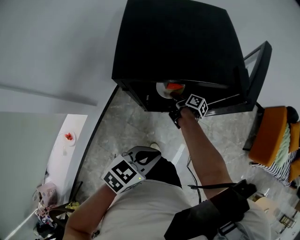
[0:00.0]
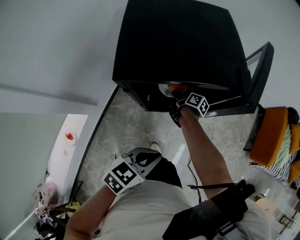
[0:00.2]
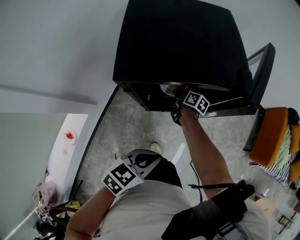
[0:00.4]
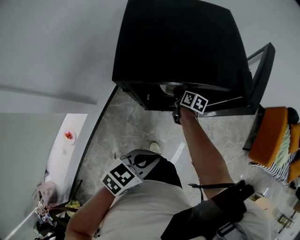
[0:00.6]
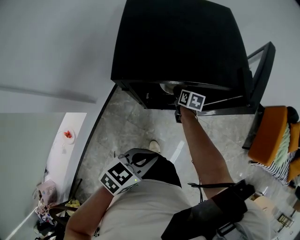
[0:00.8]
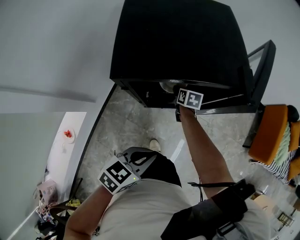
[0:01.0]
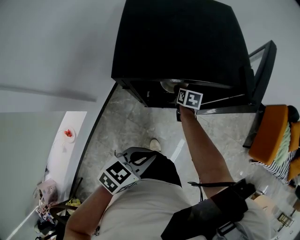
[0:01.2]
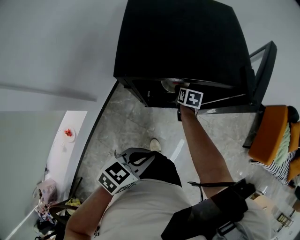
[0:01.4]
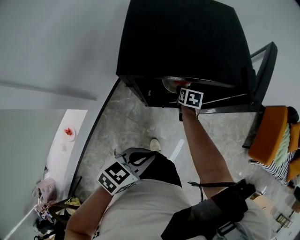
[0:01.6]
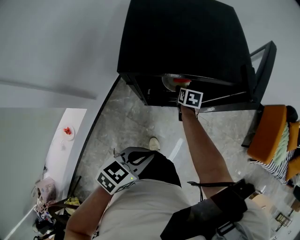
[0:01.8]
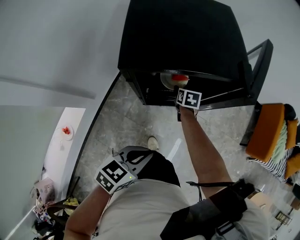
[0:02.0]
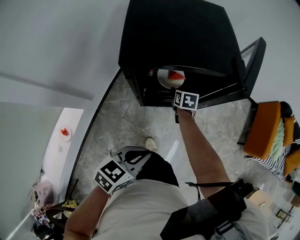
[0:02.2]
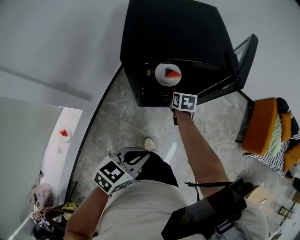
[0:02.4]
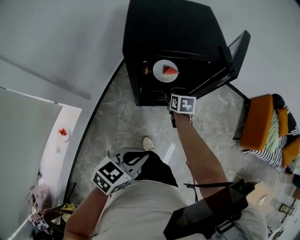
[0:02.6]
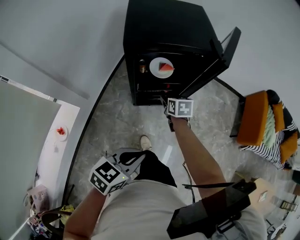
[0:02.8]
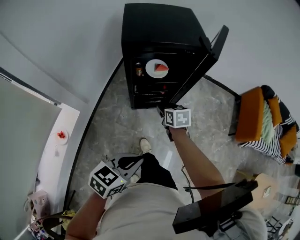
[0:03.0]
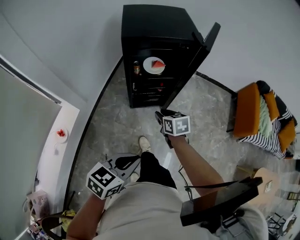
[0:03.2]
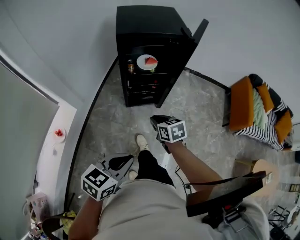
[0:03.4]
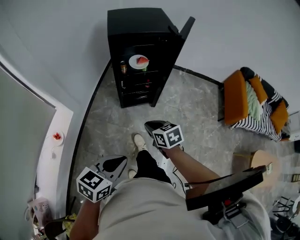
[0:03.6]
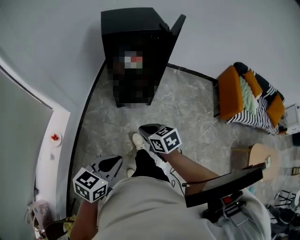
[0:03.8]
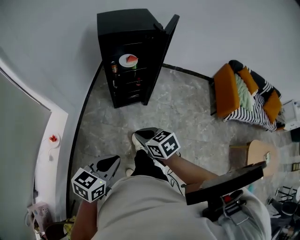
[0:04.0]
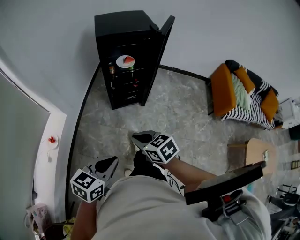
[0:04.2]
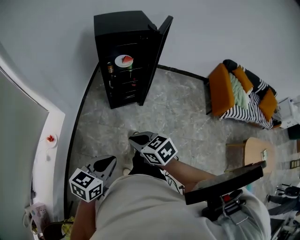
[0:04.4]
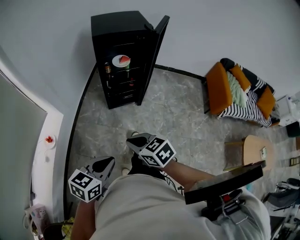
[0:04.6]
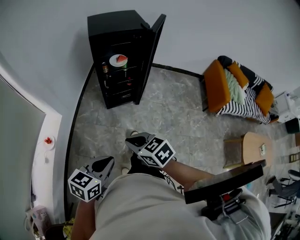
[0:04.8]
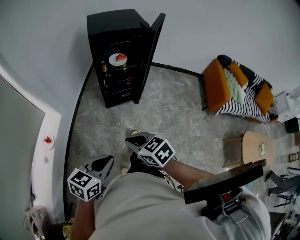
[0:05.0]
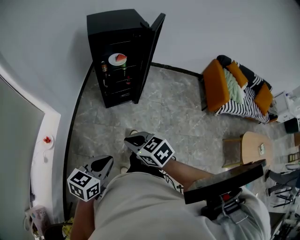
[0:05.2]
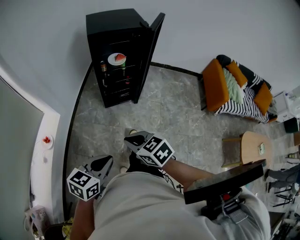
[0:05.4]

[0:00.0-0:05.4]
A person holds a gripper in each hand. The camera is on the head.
0:00.0 to 0:01.4: The right gripper rotates around the line of its fingers by some 50 degrees, counterclockwise from behind, and opens up.
0:01.4 to 0:02.8: The right gripper shifts approximately 20 cm backward and upward; the left gripper travels backward by about 15 cm.
0:02.8 to 0:04.0: The left gripper moves backward, roughly 25 cm. The right gripper travels backward by approximately 40 cm, turns by some 20 degrees, and closes up.
0:04.0 to 0:05.4: The right gripper is displaced backward by approximately 5 cm.

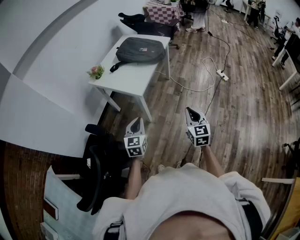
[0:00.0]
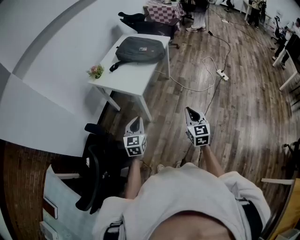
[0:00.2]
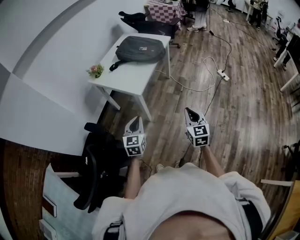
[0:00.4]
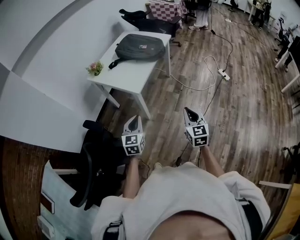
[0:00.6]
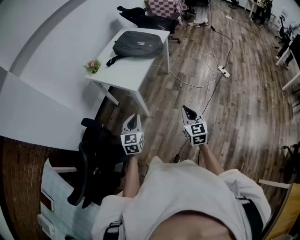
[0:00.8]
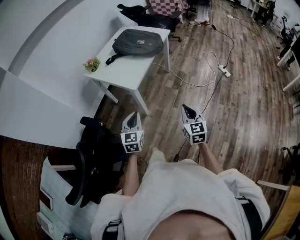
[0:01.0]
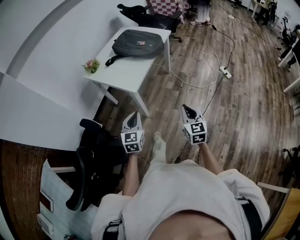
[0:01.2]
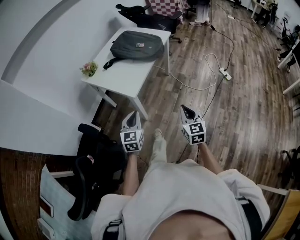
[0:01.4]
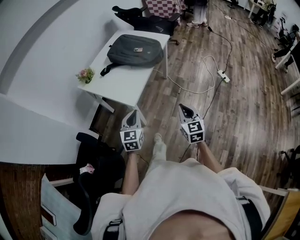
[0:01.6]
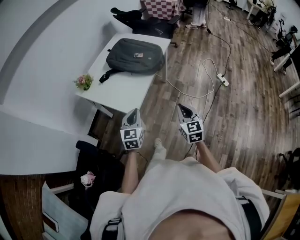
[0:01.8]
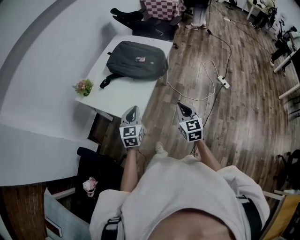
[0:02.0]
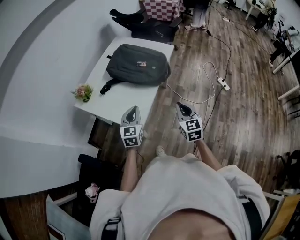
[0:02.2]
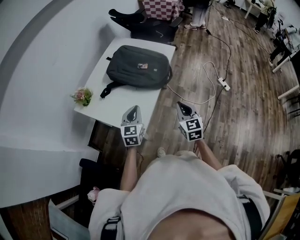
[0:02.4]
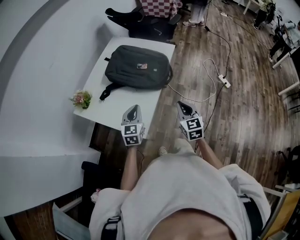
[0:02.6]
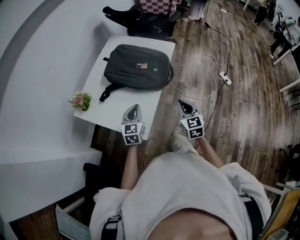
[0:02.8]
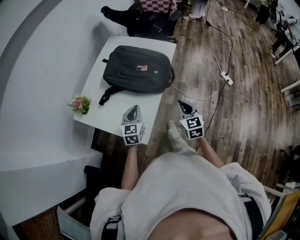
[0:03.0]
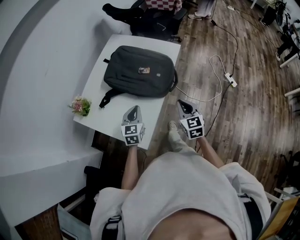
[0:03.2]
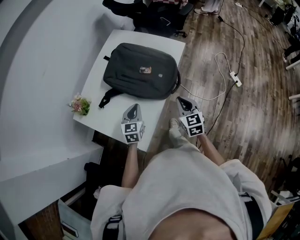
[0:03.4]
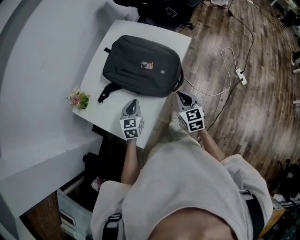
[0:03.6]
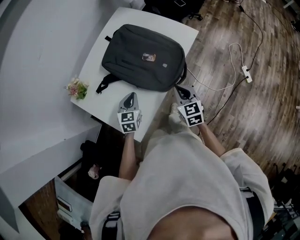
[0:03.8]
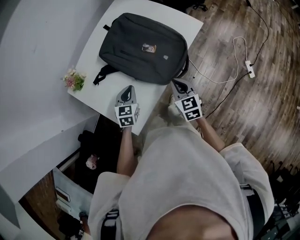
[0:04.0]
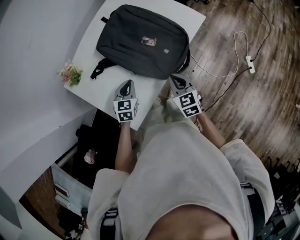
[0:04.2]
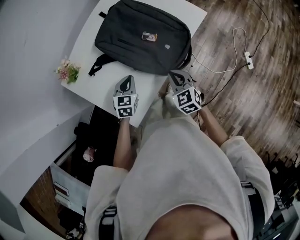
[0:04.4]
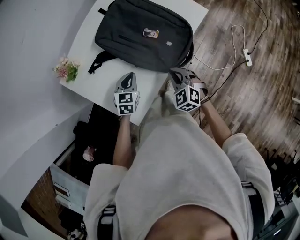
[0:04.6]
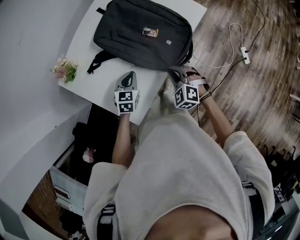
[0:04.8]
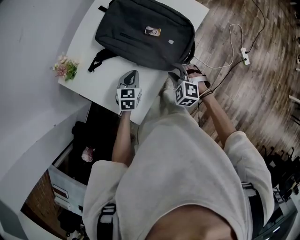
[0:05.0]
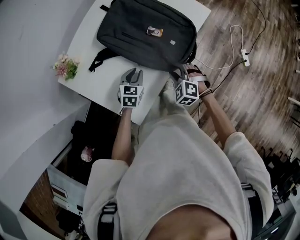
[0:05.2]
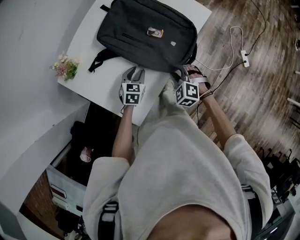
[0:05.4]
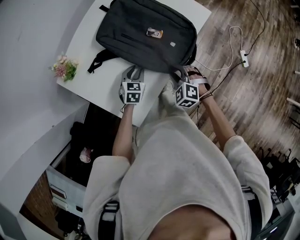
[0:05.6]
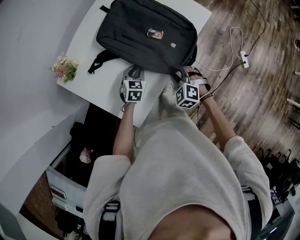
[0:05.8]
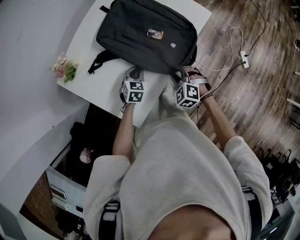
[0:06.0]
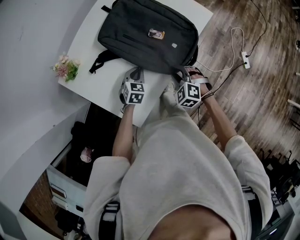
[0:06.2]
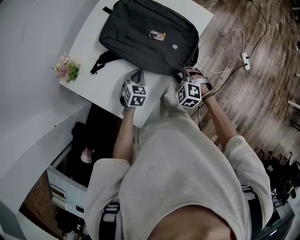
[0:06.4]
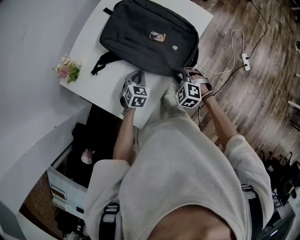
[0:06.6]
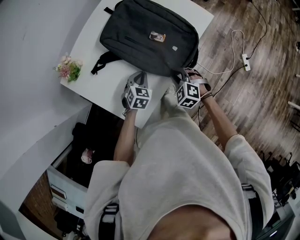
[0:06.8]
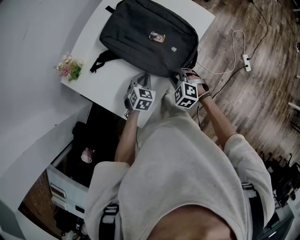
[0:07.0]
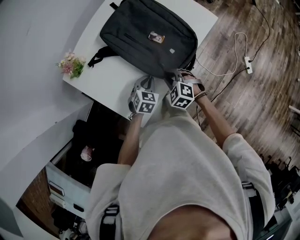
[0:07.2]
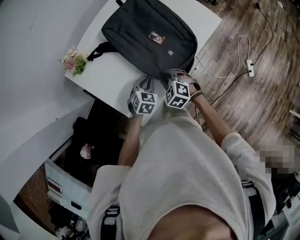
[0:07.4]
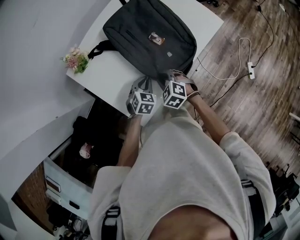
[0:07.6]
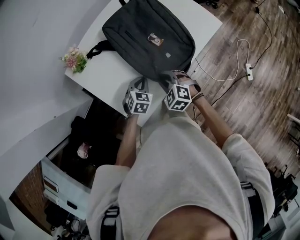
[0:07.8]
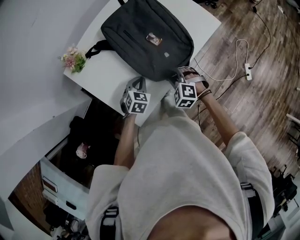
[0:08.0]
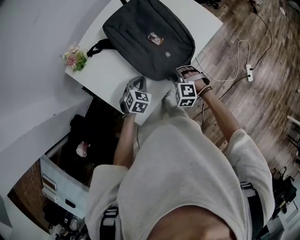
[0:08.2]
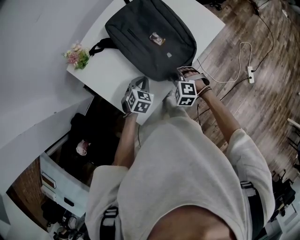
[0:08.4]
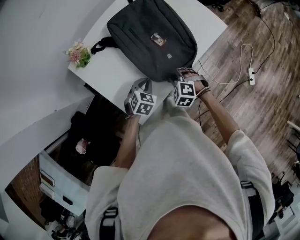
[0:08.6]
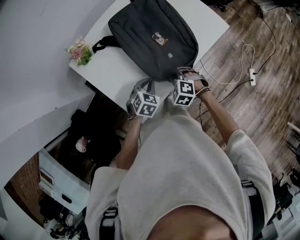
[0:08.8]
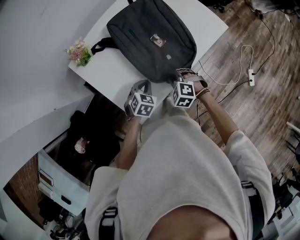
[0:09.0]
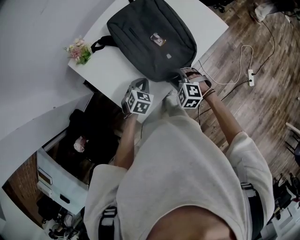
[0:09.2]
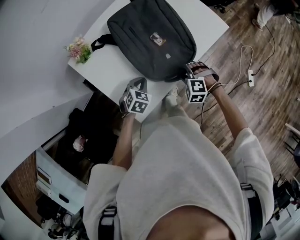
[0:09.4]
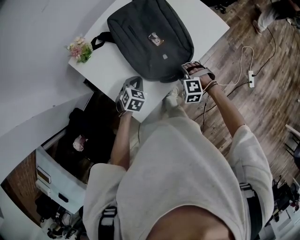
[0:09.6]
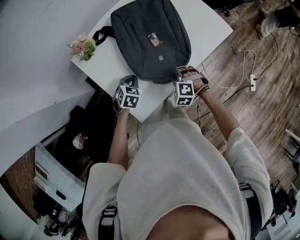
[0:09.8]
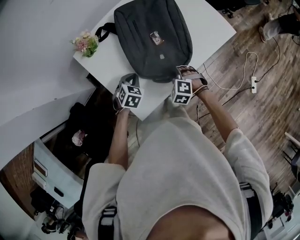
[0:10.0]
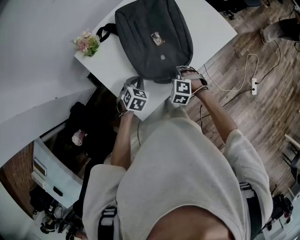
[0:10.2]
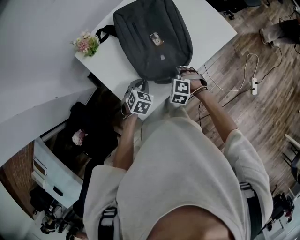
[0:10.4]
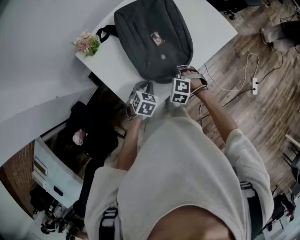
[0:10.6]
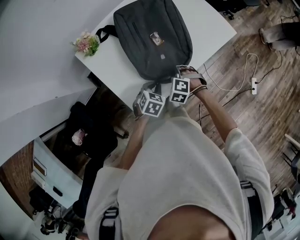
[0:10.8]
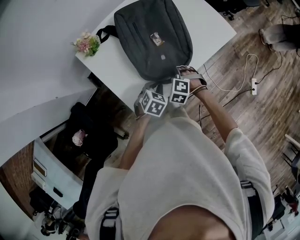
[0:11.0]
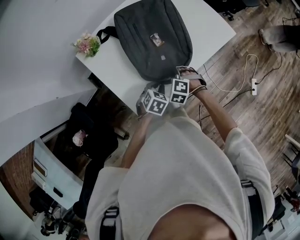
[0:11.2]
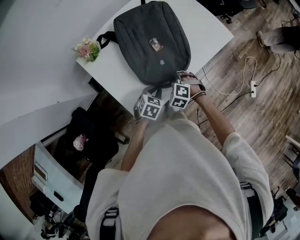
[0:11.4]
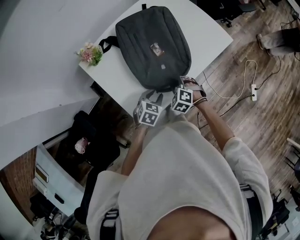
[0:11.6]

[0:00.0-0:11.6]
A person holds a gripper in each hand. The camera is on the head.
0:00.0 to 0:01.4: The grippers both shift forward by roughly 10 cm.
0:01.4 to 0:02.8: Both grippers move forward, roughly 35 cm.
0:02.8 to 0:04.4: The two grippers go some 20 cm forward and downward. The right gripper turns by about 40 degrees, while the left gripper turns by some 20 degrees.
0:04.4 to 0:05.8: The grippers both shift downward by some 5 cm. The right gripper rotates roughly 30 degrees, and opens up.
0:05.8 to 0:07.2: The left gripper goes about 5 cm backward. The right gripper is displaced to the left by roughly 5 cm.
0:08.8 to 0:10.2: The left gripper shifts some 10 cm to the left. The right gripper opens, then closes again.
0:10.2 to 0:11.6: The left gripper heads to the right, covering approximately 10 cm, and opens its fingers.

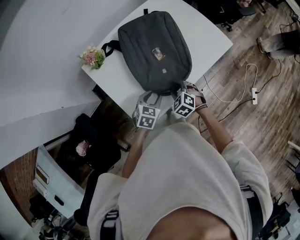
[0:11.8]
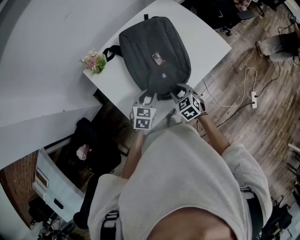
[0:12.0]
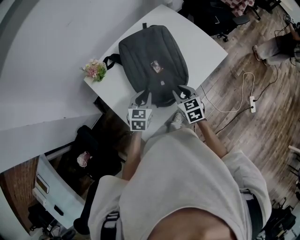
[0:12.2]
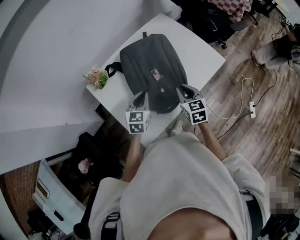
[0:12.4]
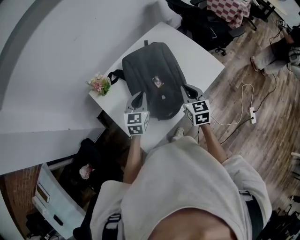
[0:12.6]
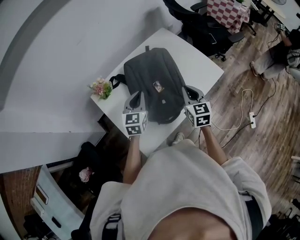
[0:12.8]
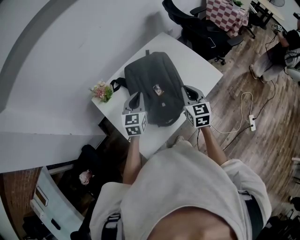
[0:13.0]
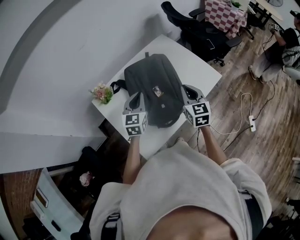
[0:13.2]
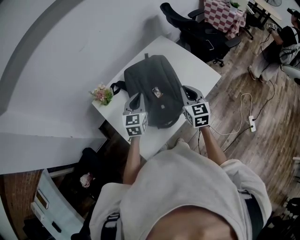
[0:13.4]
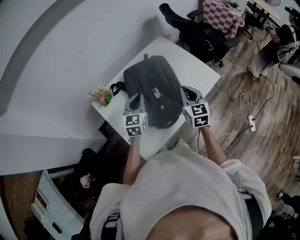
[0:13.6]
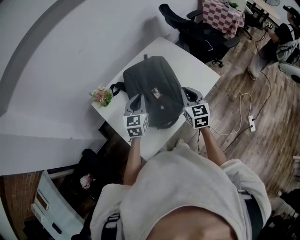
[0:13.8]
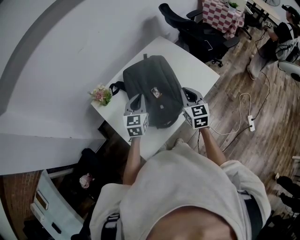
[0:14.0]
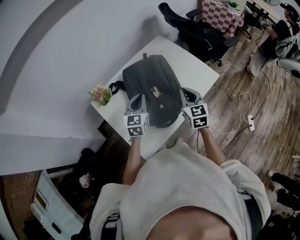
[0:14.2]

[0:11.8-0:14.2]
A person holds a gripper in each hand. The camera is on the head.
0:11.8 to 0:13.0: The two grippers go roughly 25 cm upward and forward. The left gripper tips its fingers upward by about 30 degrees, and closes. Meanwhile the right gripper angles its fingers upward, by approximately 40 degrees, and closes its fingers.
0:13.0 to 0:14.2: The grippers stay close to where they were, moving slightly.

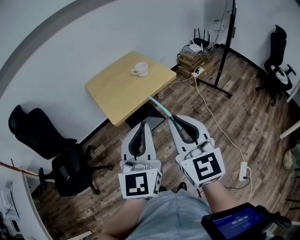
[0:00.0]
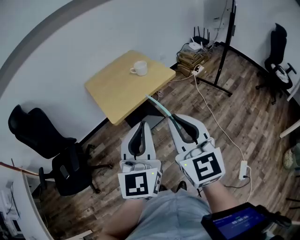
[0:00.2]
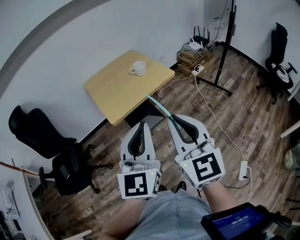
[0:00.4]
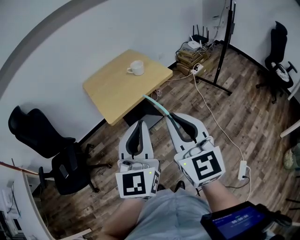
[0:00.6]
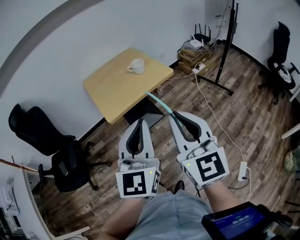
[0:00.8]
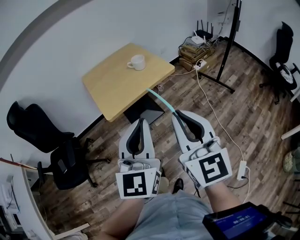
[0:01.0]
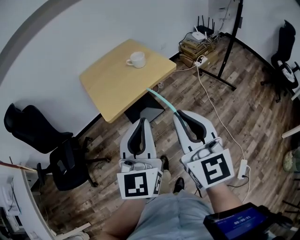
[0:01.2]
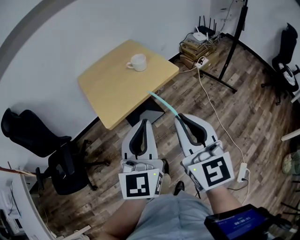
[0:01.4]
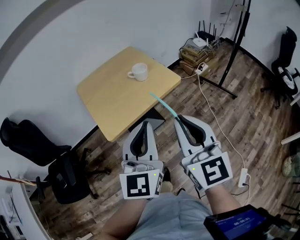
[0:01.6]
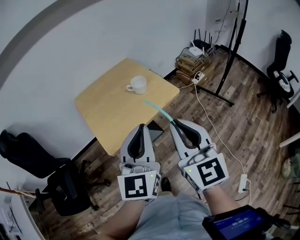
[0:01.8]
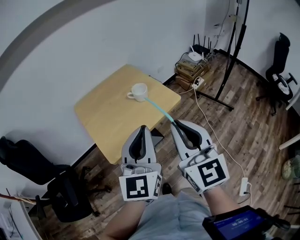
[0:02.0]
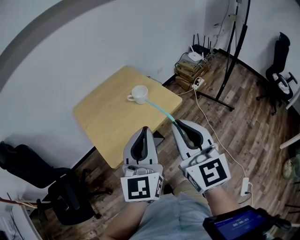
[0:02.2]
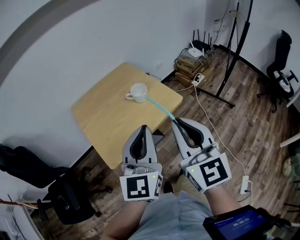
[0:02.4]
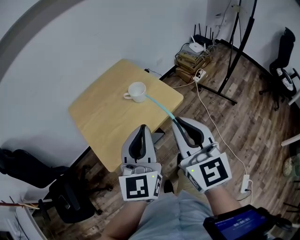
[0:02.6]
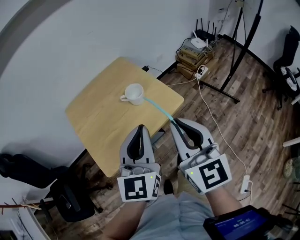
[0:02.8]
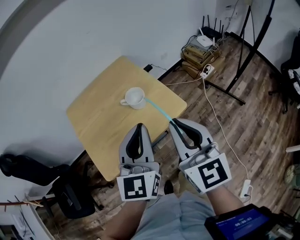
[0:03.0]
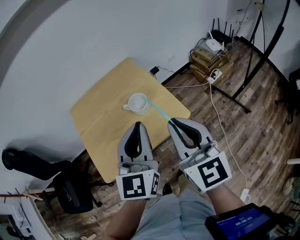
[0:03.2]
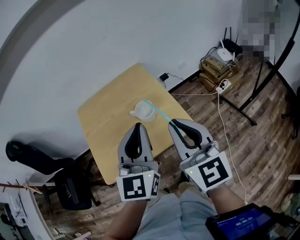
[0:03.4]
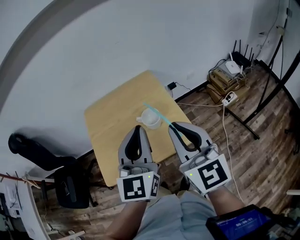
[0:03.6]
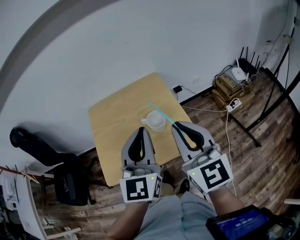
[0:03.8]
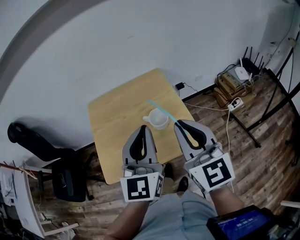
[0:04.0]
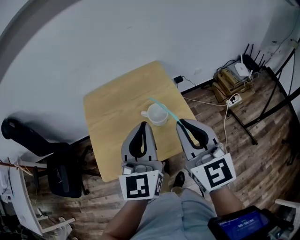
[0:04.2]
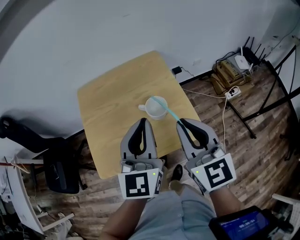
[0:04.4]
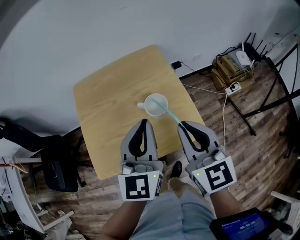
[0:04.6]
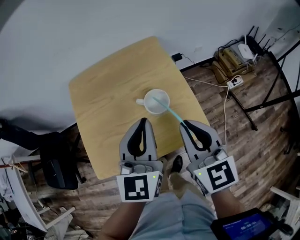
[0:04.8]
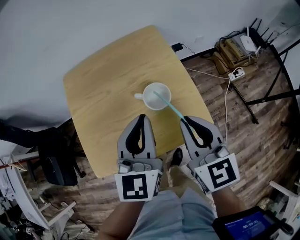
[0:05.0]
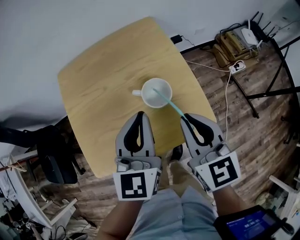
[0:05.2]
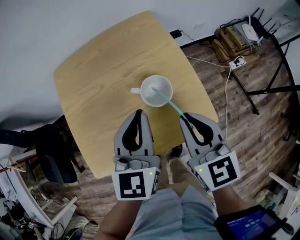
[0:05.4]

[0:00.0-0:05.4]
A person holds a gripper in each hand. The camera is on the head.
0:00.0 to 0:01.4: The grippers both shift forward by approximately 10 cm.
0:01.4 to 0:02.8: Both grippers move forward, roughly 25 cm.
0:02.8 to 0:04.0: Both grippers travel together forward, about 15 cm. The left gripper changes its angle by approximately 20 degrees. Meanwhile the right gripper swivels roughly 20 degrees.
0:04.0 to 0:05.4: The left gripper moves downward and forward, about 20 cm. Meanwhile the right gripper goes some 20 cm downward, and changes its angle by about 20 degrees.
